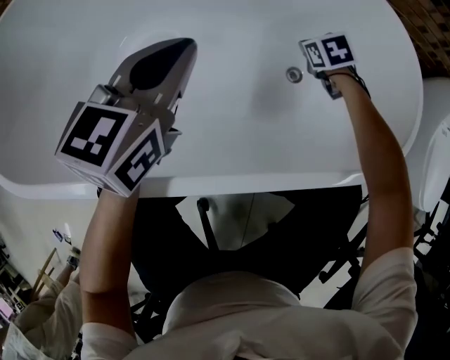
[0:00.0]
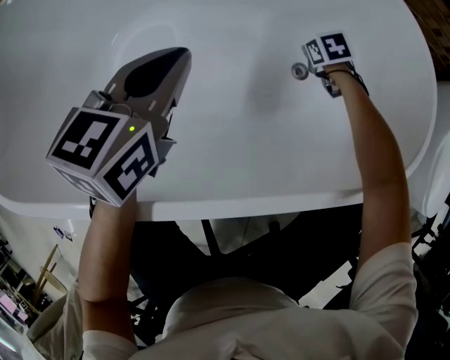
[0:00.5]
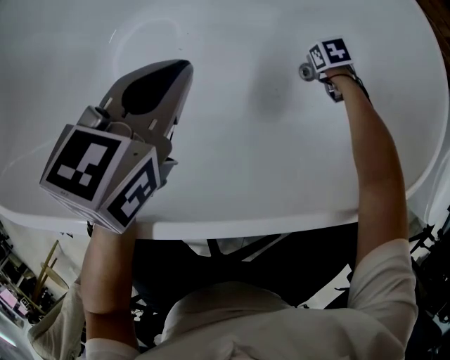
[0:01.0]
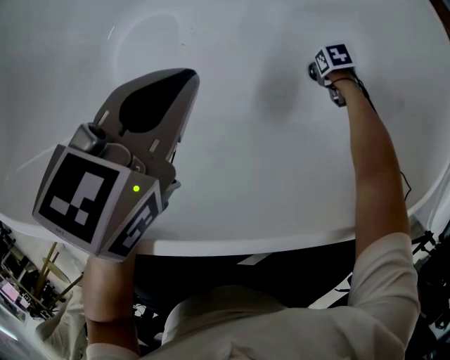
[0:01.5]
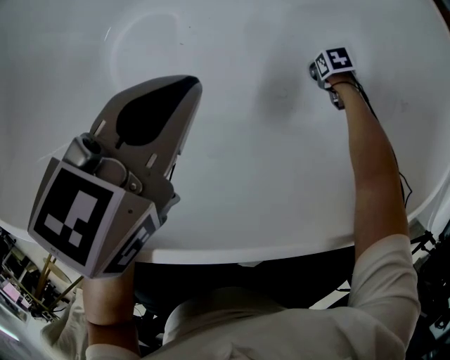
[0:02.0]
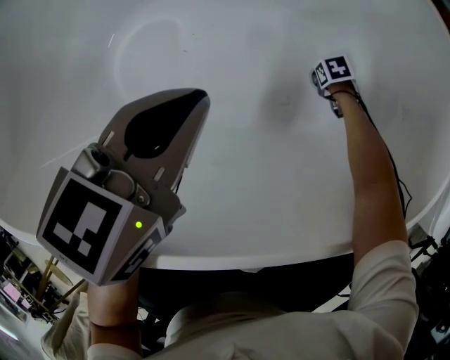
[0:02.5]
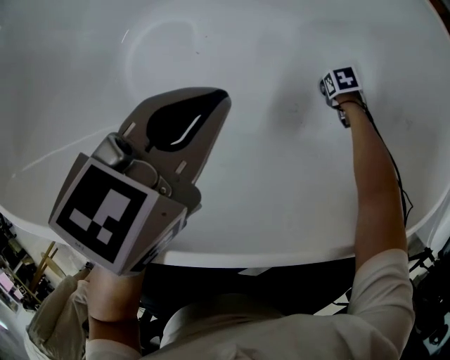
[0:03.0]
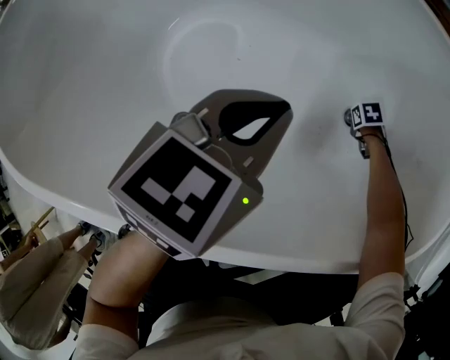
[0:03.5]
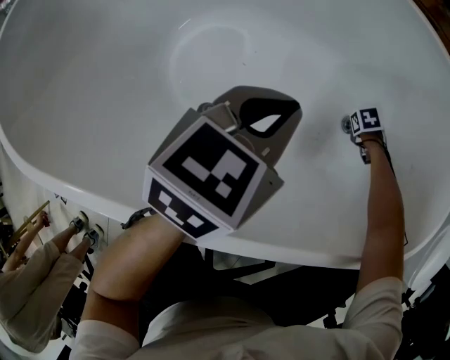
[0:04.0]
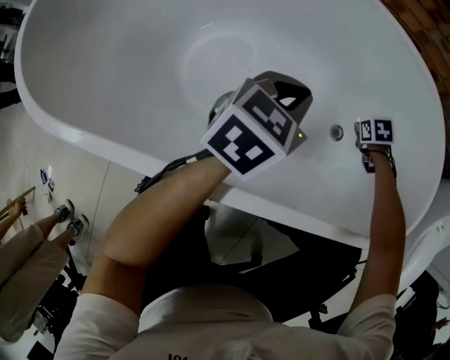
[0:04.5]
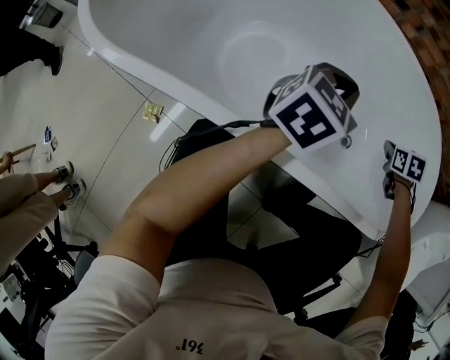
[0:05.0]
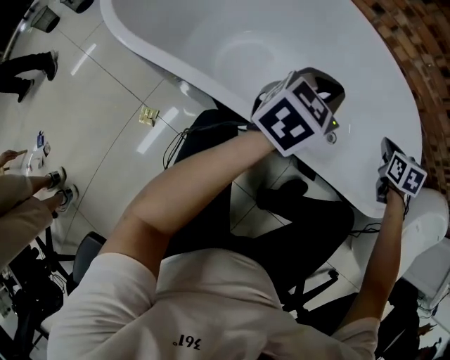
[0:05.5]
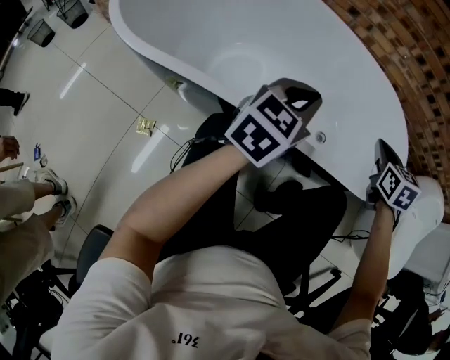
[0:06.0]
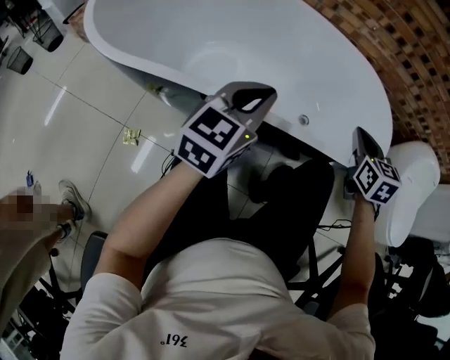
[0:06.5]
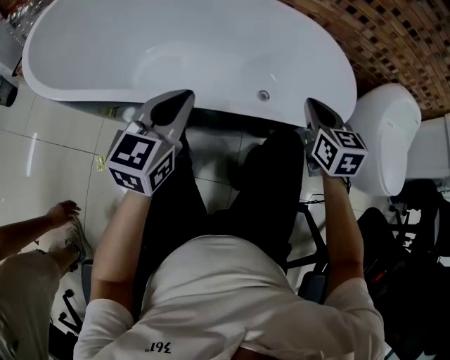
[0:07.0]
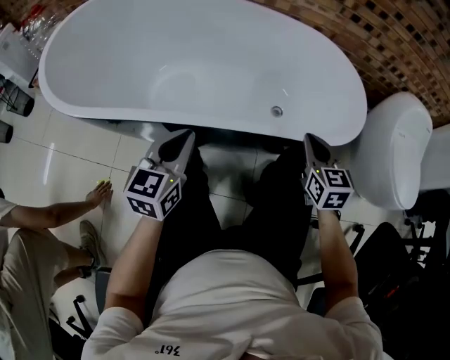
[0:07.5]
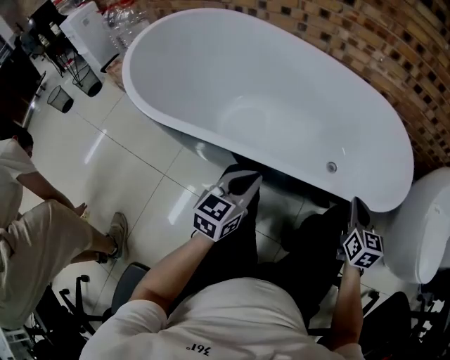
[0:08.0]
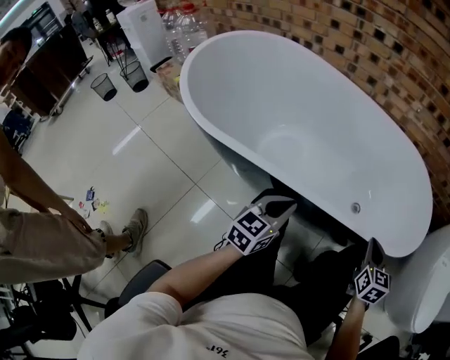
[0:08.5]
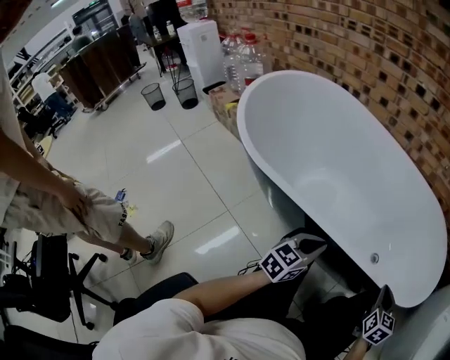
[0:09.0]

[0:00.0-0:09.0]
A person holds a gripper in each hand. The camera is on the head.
0:00.0 to 0:02.0: The left gripper moves downward, approximately 5 cm, while the right gripper heads downward, covering roughly 25 cm, and rotates approximately 30 degrees.
0:02.0 to 0:04.5: The right gripper shifts about 15 cm upward.
0:04.5 to 0:07.0: The left gripper changes place by some 25 cm, and rotates about 20 degrees, while the right gripper goes about 35 cm upward, and angles its fingers upward, by about 50 degrees.
0:07.0 to 0:09.0: Both grippers move downward, about 10 cm.

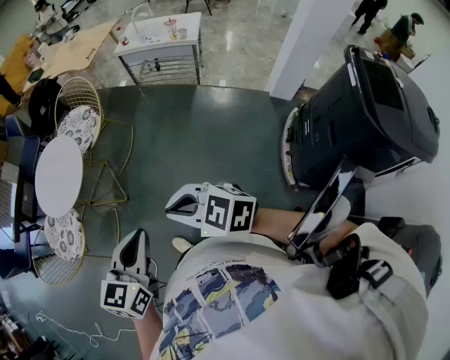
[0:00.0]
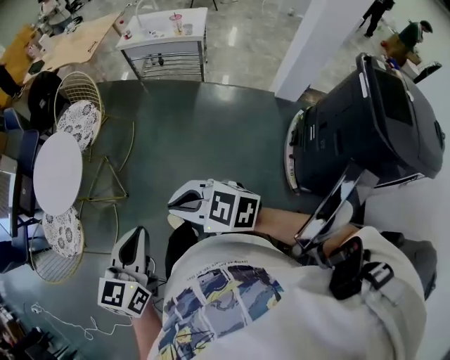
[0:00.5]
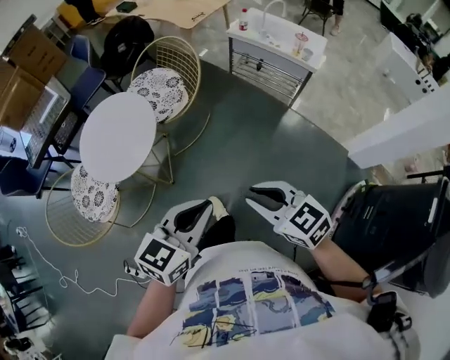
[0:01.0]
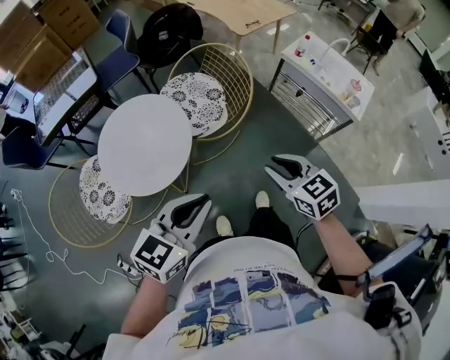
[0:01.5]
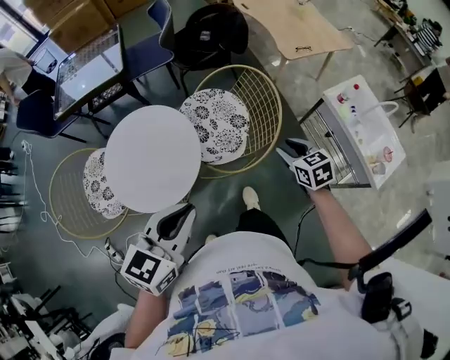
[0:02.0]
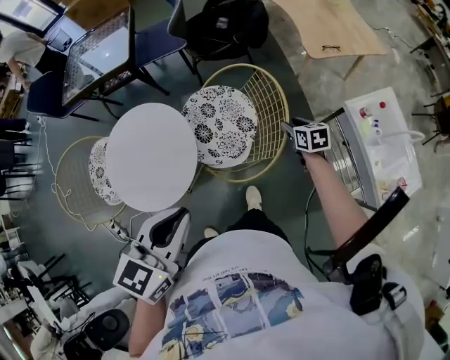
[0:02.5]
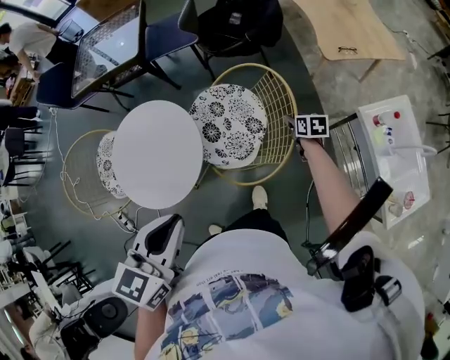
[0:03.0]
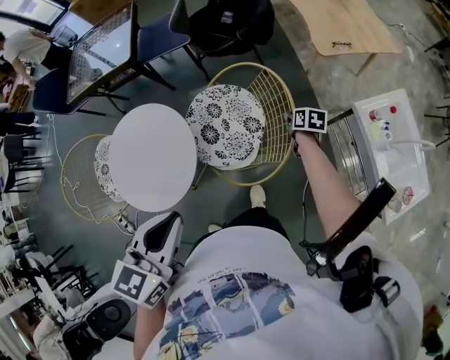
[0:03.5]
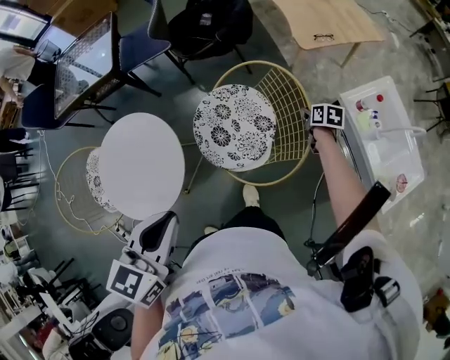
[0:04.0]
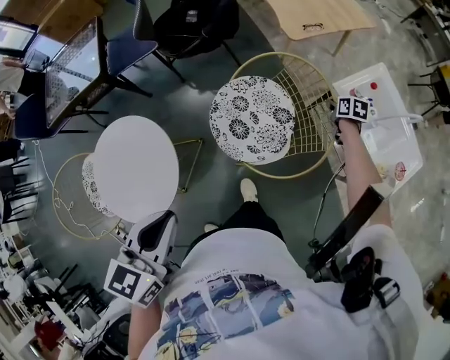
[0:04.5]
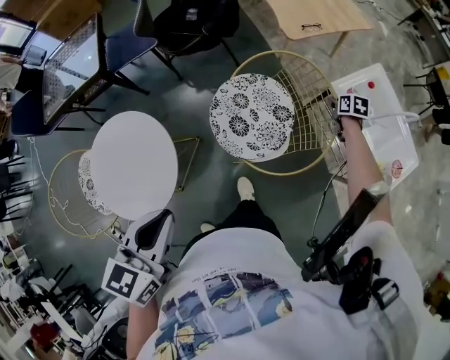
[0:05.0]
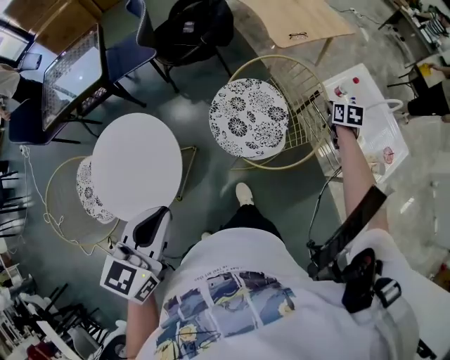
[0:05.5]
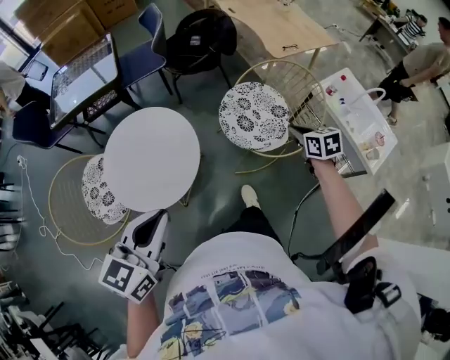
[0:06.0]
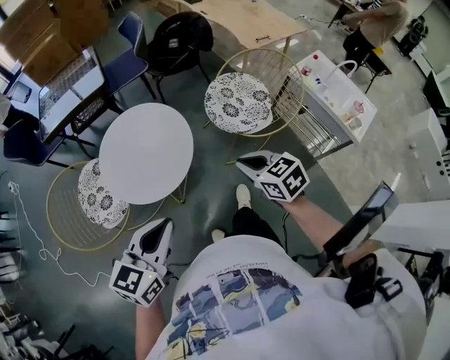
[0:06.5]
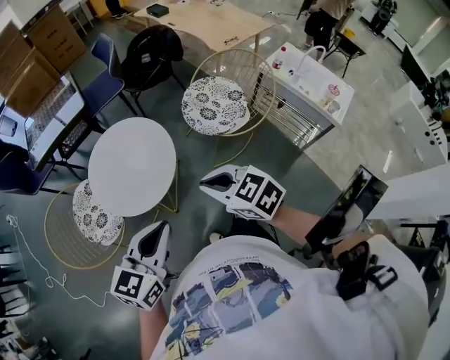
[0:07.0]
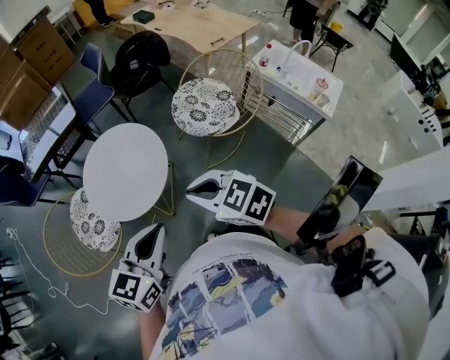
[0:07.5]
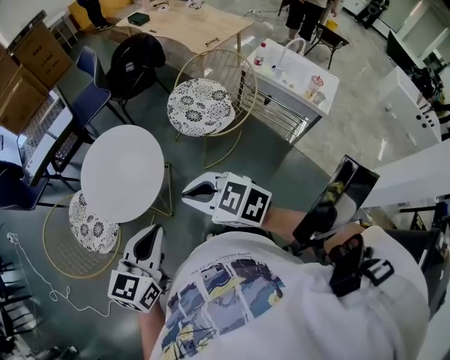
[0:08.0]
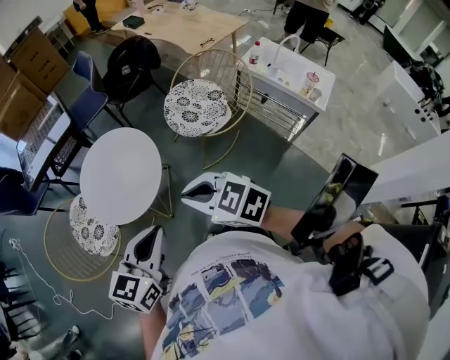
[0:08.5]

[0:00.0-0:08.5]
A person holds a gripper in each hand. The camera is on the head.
0:00.0 to 0:02.0: The pair of grippers is taken forward, about 70 cm. The right gripper opens. The left gripper changes its angle by about 30 degrees.
0:02.0 to 0:04.0: The left gripper is displaced forward by some 15 cm. The right gripper goes roughly 35 cm forward and downward, turns by about 30 degrees, and closes.
0:04.0 to 0:06.5: The pair of grippers is taken to the left and backward, roughly 60 cm. The right gripper heads upward, covering some 30 cm, and swivels some 30 degrees.
0:06.5 to 0:08.5: The right gripper shifts roughly 15 cm backward, upward and to the left. The left gripper moves roughly 5 cm.

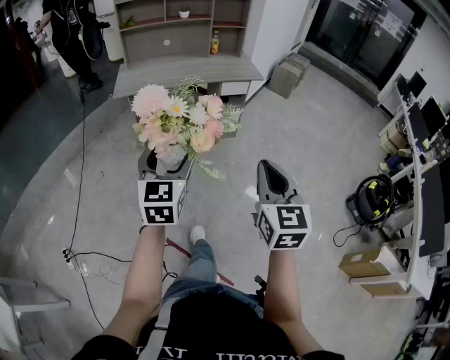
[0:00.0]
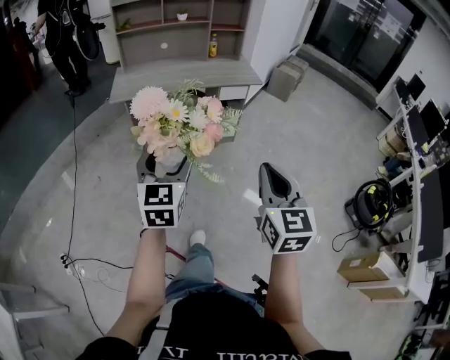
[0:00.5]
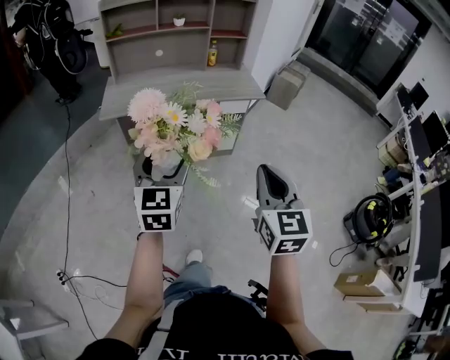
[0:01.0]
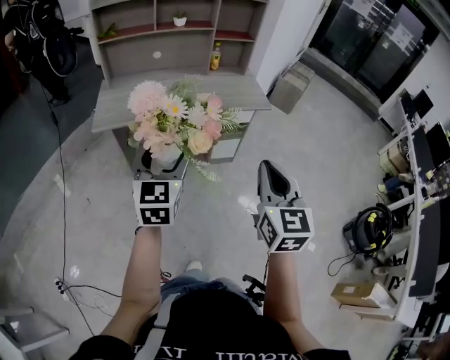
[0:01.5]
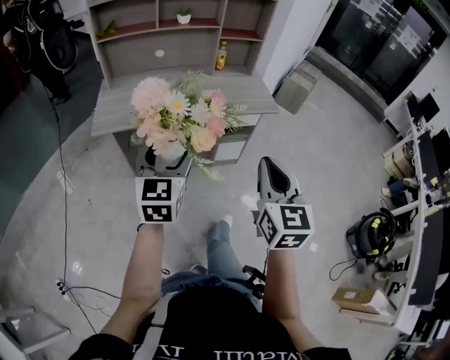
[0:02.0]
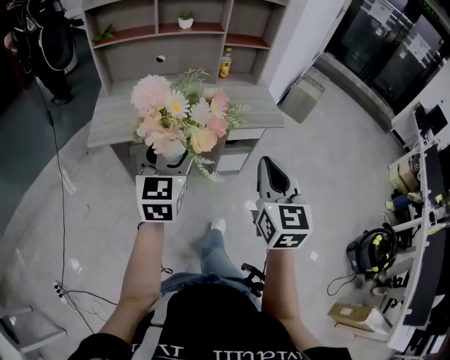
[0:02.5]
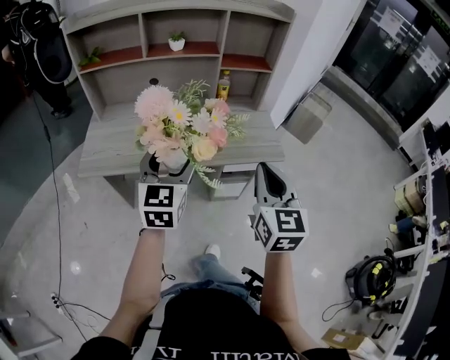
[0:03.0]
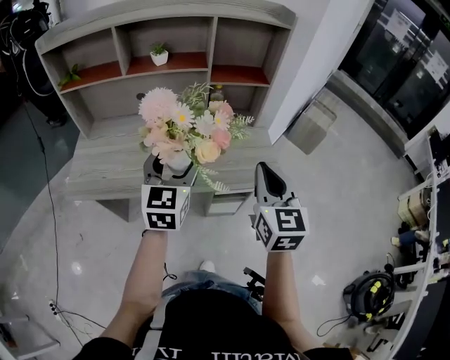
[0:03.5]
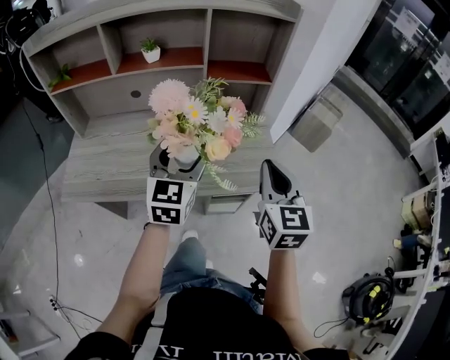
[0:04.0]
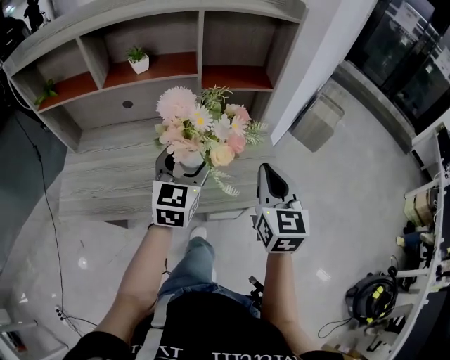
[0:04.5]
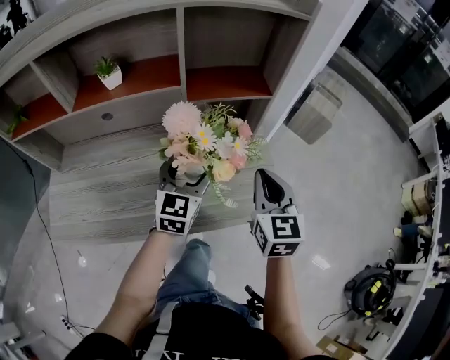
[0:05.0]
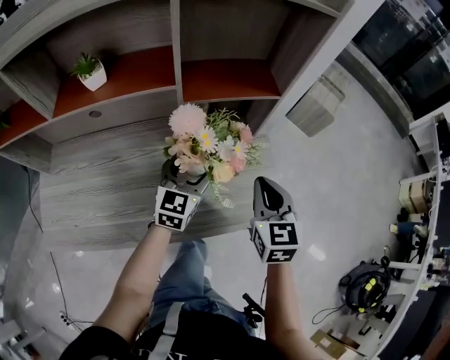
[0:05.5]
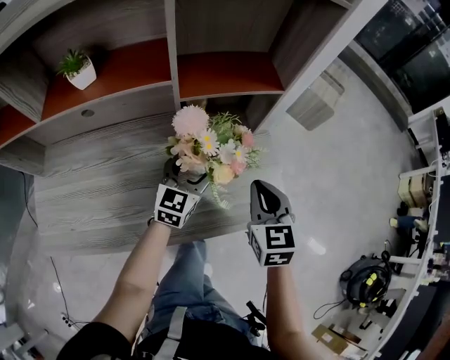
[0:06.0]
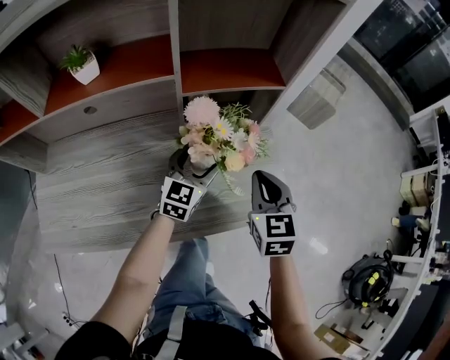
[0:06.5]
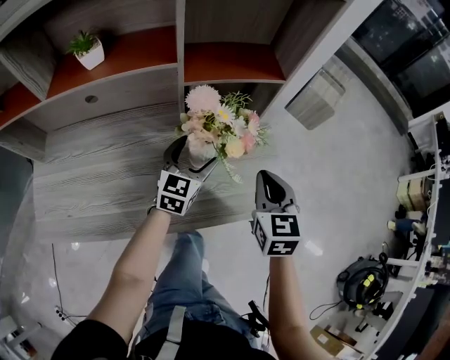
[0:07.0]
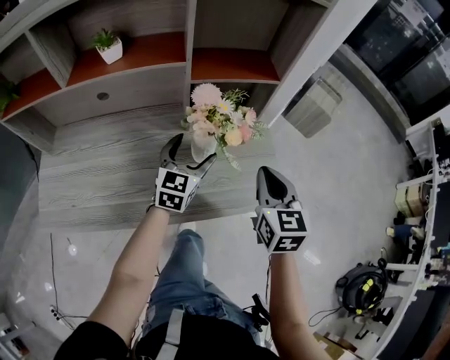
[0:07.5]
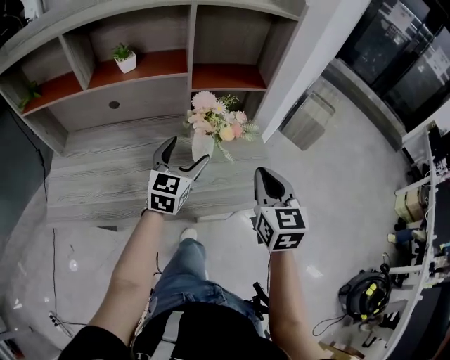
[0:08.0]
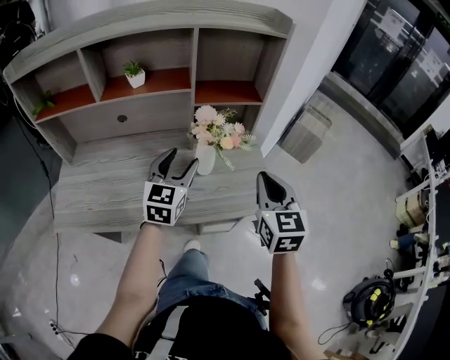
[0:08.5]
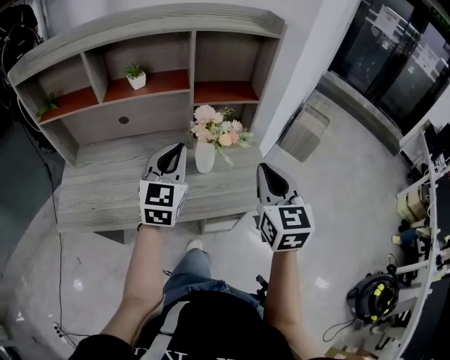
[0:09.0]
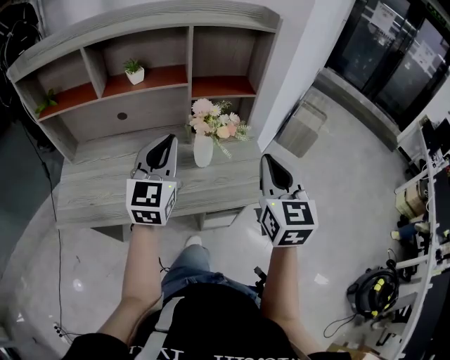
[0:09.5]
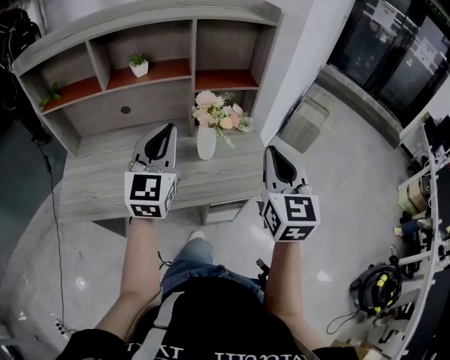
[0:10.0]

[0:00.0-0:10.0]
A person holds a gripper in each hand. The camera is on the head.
0:00.0 to 0:02.0: Both grippers move forward, about 35 cm.
0:02.0 to 0:04.0: The pair of grippers is taken forward, about 50 cm.
0:04.0 to 0:06.0: Both grippers travel together forward and downward, roughly 25 cm. The left gripper changes its angle by about 20 degrees.
0:06.0 to 0:08.0: The grippers both shift backward and upward by some 10 cm.
0:08.0 to 0:10.0: The left gripper goes roughly 20 cm upward and backward, turns by approximately 20 degrees, and closes up, while the right gripper goes some 15 cm upward and backward.
